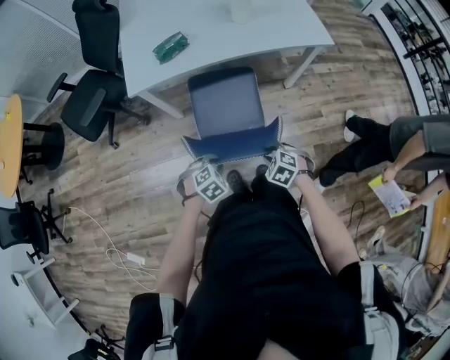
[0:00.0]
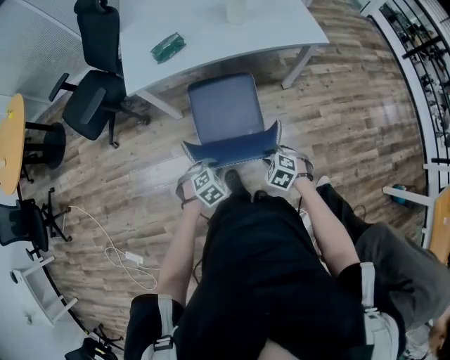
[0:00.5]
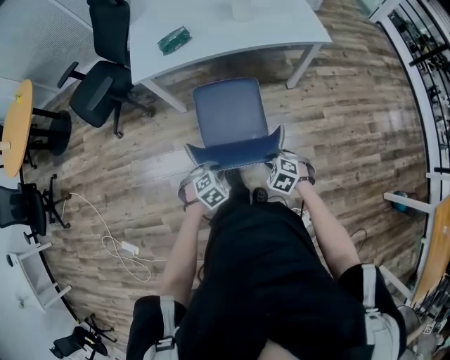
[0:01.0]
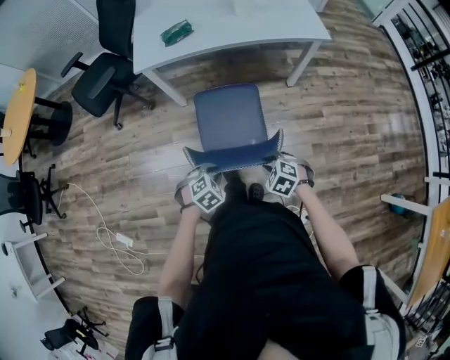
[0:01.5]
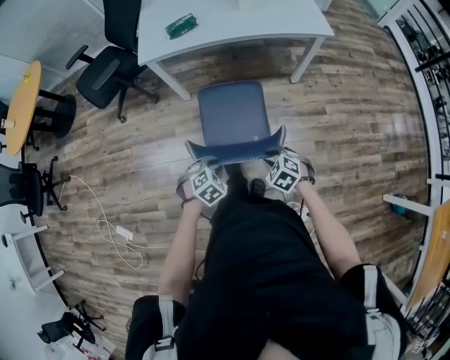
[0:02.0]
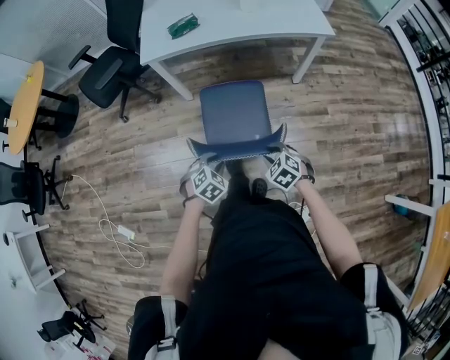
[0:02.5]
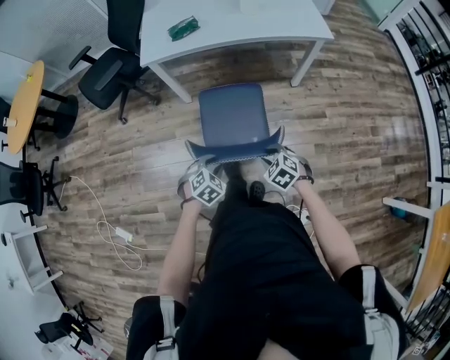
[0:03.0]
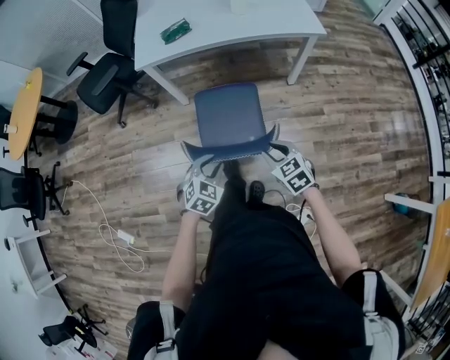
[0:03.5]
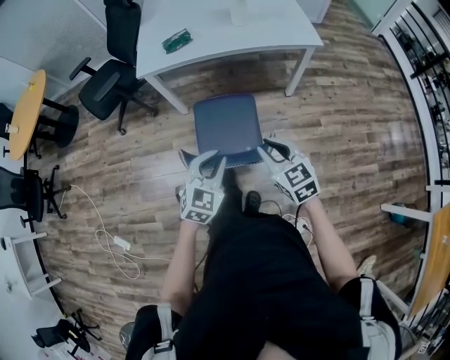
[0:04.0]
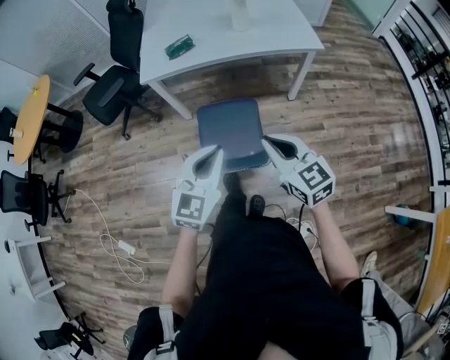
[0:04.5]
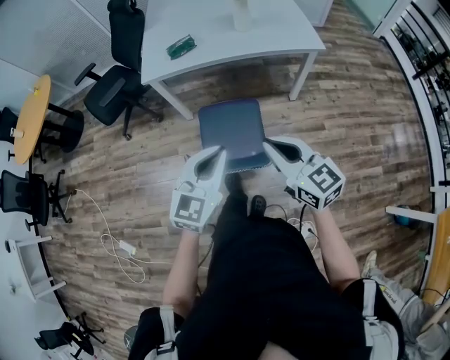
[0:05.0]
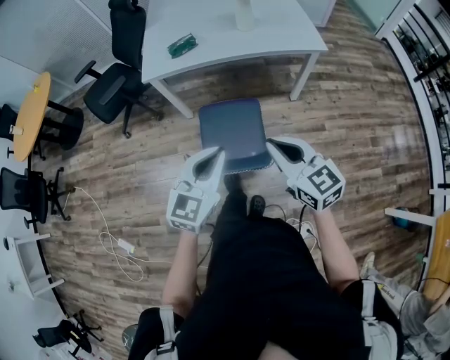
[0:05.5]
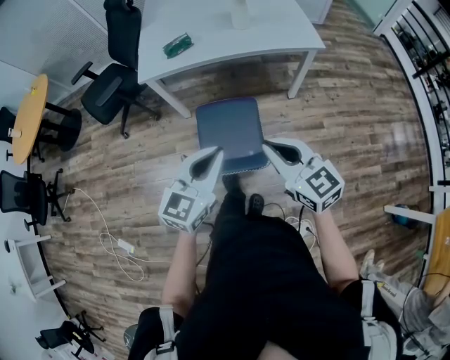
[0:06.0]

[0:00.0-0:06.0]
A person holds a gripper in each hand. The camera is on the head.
0:00.0 to 0:02.0: Both grippers move backward, some 15 cm.
0:02.0 to 0:04.0: The grippers both shift upward by approximately 20 cm. The left gripper tips its fingers upward by roughly 40 degrees. Meanwhile the right gripper points its fingers roughly 40 degrees further upward.
0:04.0 to 0:06.0: Both grippers move upward, approximately 10 cm. The left gripper swivels approximately 30 degrees.

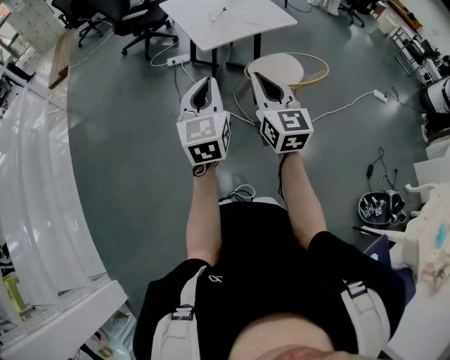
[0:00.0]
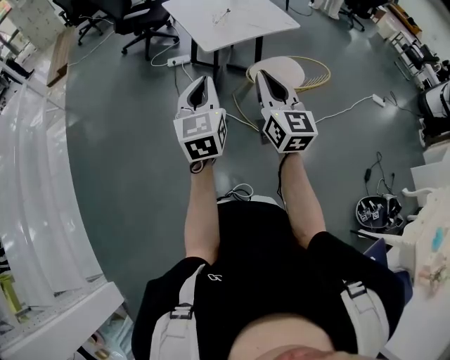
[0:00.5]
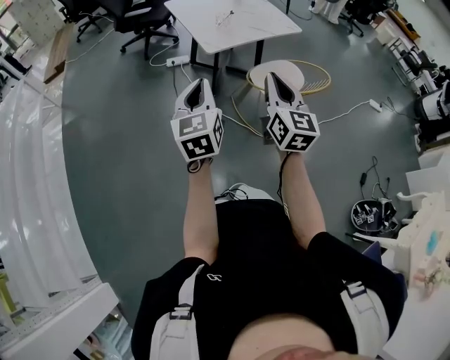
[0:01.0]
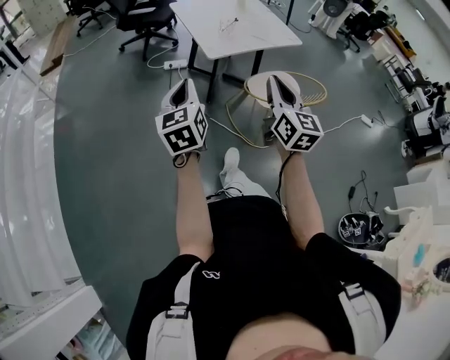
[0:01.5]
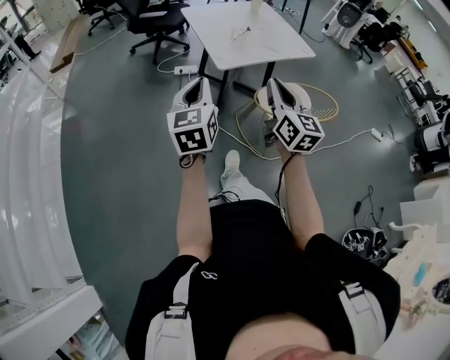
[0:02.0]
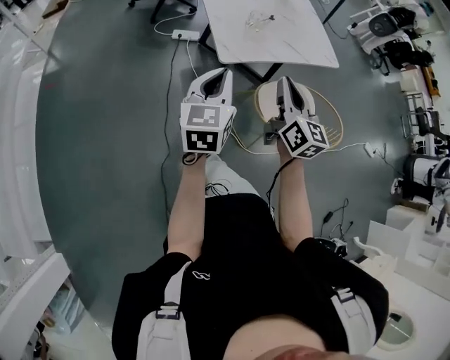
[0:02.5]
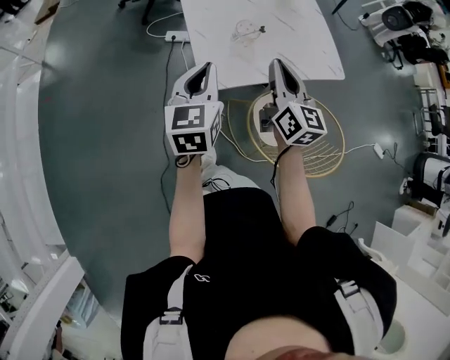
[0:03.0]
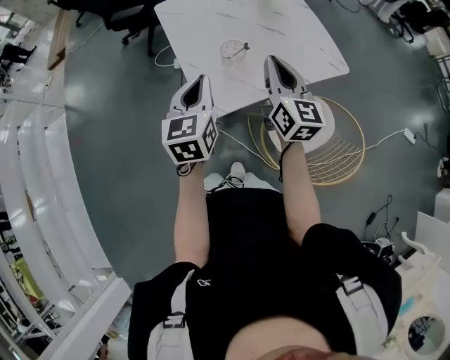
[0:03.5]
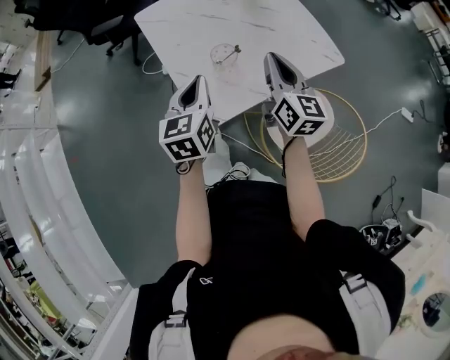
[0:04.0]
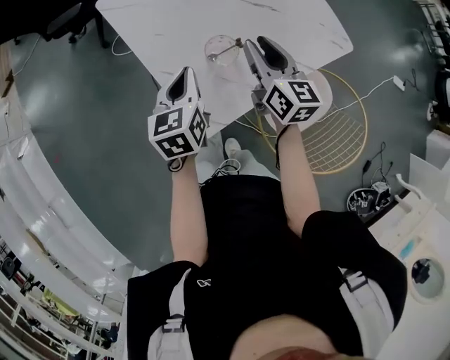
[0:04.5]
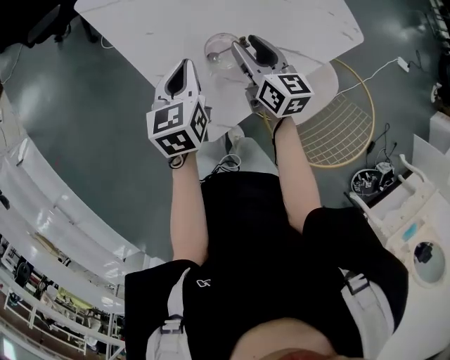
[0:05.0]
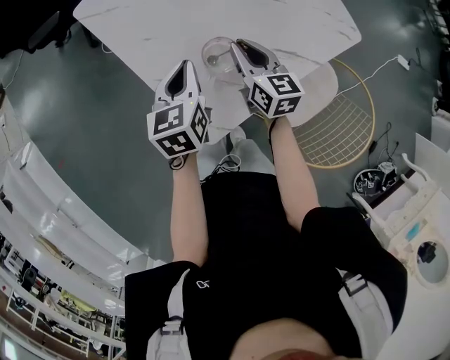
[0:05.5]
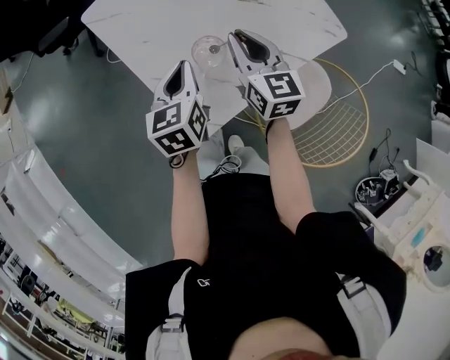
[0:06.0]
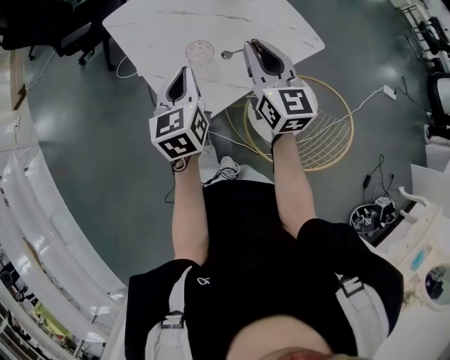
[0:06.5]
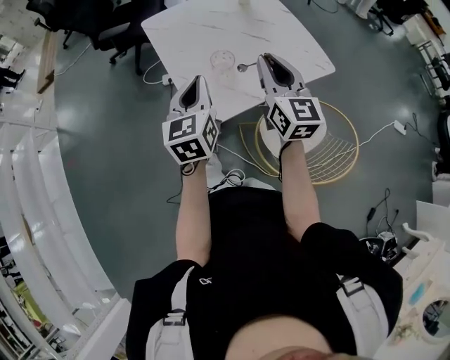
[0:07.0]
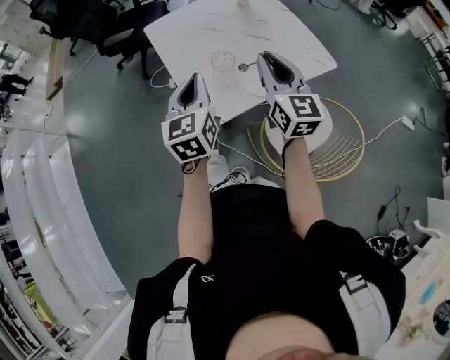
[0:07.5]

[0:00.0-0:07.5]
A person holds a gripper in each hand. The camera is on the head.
0:00.0 to 0:02.0: The right gripper travels forward by roughly 15 cm; the left gripper moves forward and to the left, approximately 15 cm.
0:02.0 to 0:04.0: The two grippers travel together, forward, approximately 50 cm.
0:04.0 to 0:05.5: Both grippers move downward and forward, some 20 cm. The right gripper changes its angle by some 20 degrees, and opens, then closes once more.
0:05.5 to 0:07.5: The two grippers go approximately 25 cm upward and backward. The left gripper turns by some 30 degrees; the right gripper swivels approximately 30 degrees.

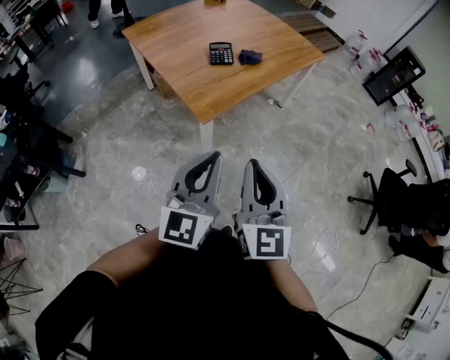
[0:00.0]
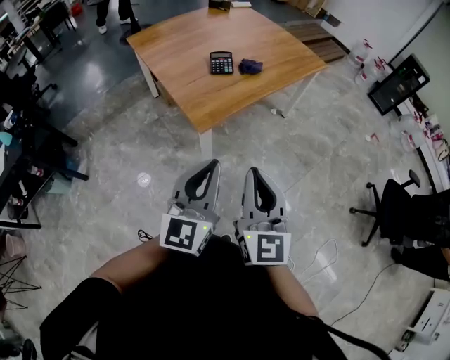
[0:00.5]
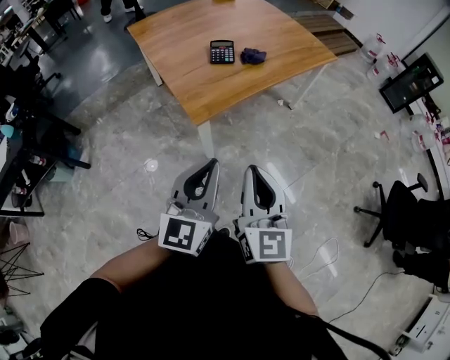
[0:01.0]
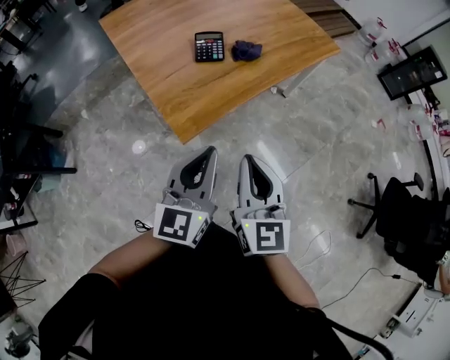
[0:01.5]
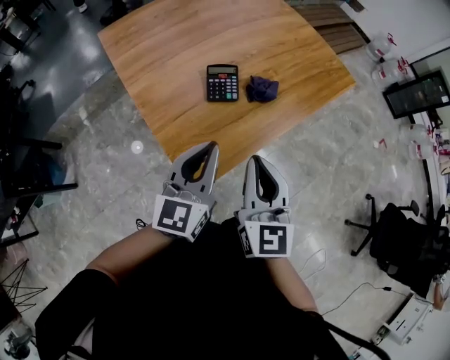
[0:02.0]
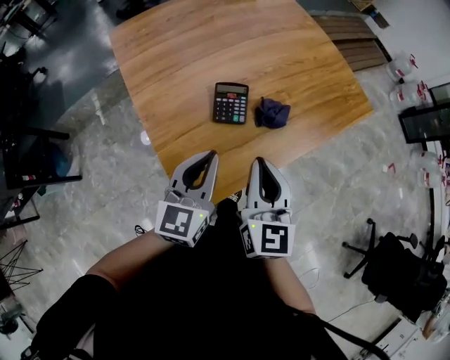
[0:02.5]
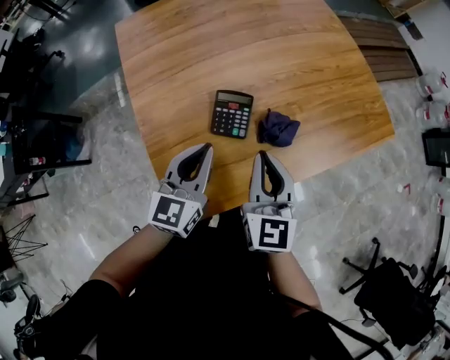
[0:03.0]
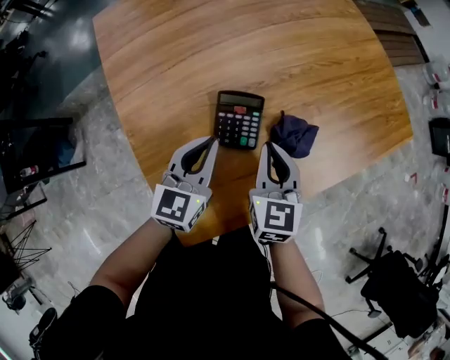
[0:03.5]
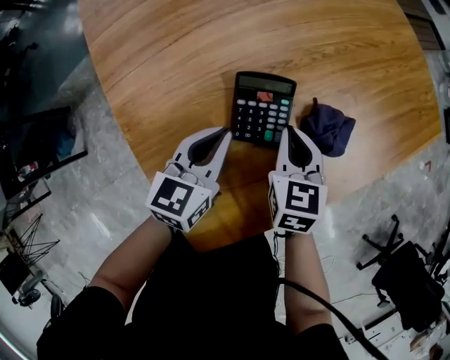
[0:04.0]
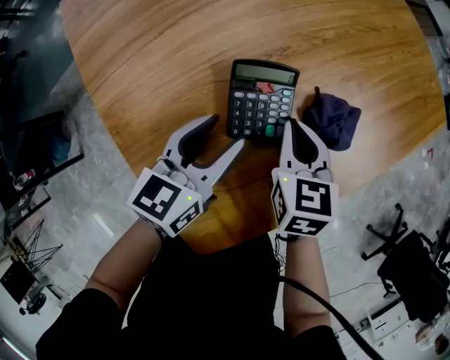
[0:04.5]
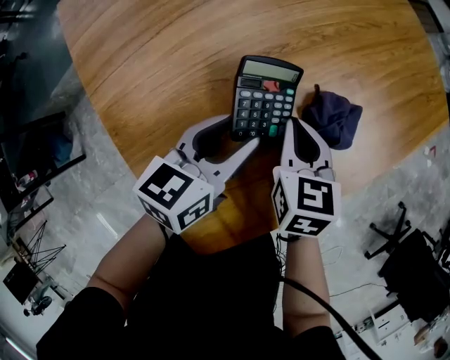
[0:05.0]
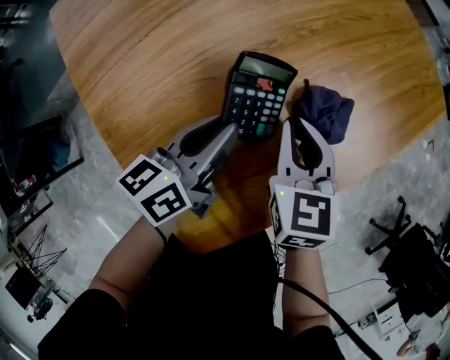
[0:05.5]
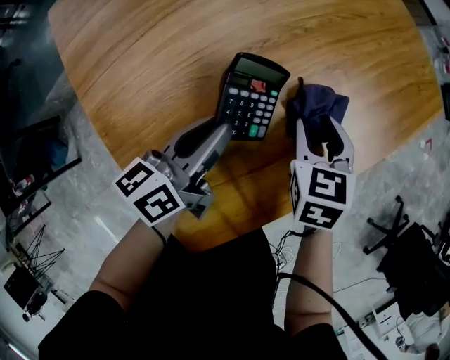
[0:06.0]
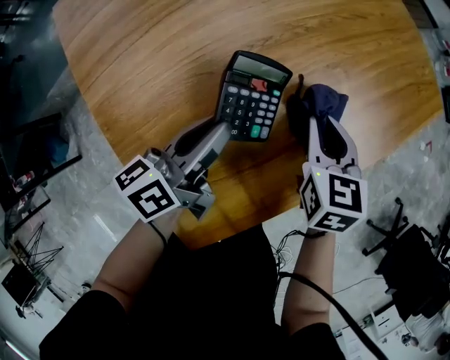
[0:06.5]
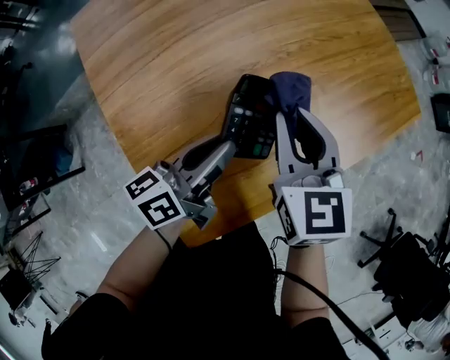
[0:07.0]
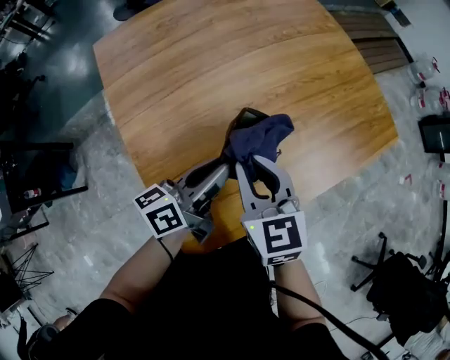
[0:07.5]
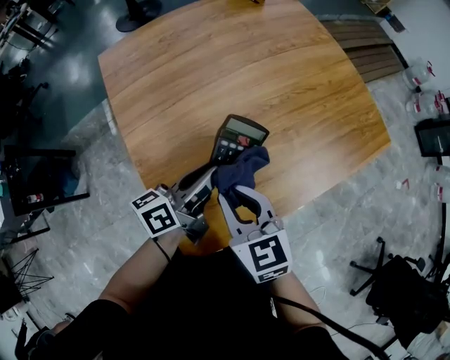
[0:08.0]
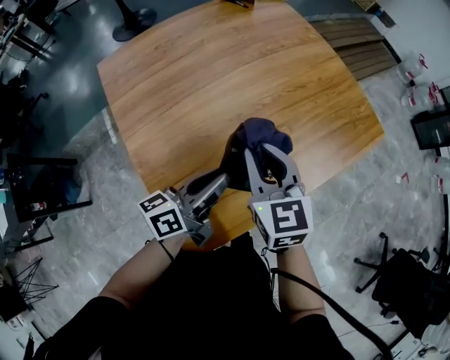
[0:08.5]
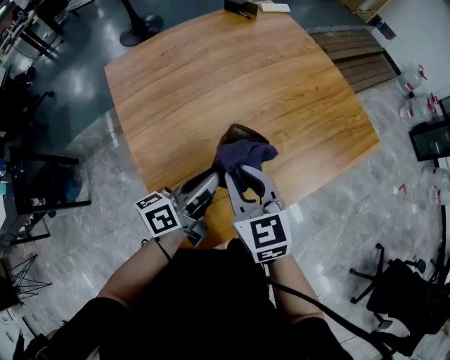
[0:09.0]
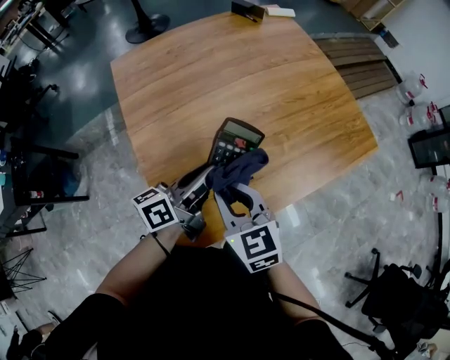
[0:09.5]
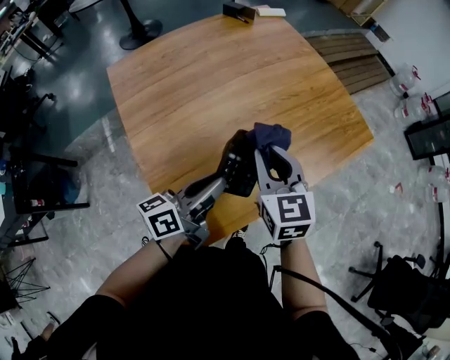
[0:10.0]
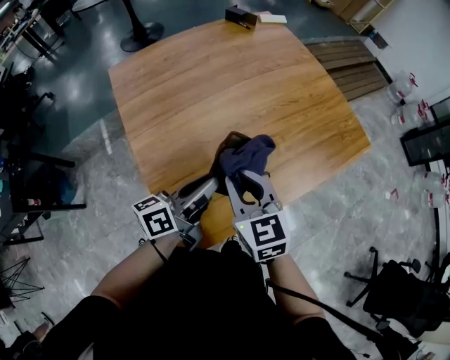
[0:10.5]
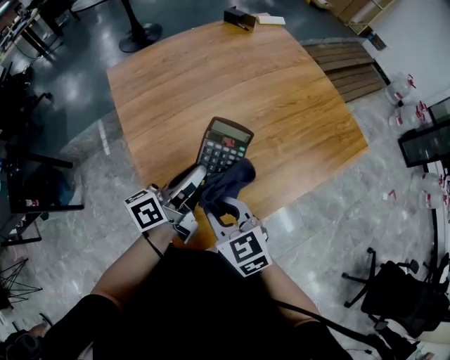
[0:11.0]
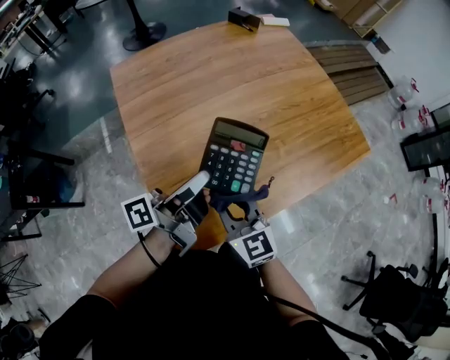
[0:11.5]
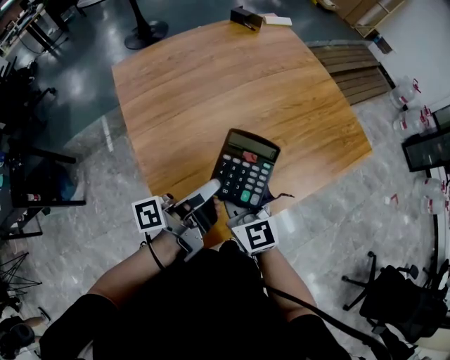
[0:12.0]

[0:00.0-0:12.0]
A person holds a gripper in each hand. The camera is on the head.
0:00.0 to 0:02.0: Both grippers are carried forward, about 40 cm.
0:02.0 to 0:04.0: The right gripper moves forward and downward, about 50 cm, and points its fingers roughly 30 degrees further downward. The left gripper goes about 40 cm downward and forward, and changes its angle by some 20 degrees.
0:04.0 to 0:06.0: The left gripper swivels approximately 30 degrees, and opens, then closes once more. Meanwhile the right gripper heads to the right, covering some 5 cm, and opens its fingers.
0:06.0 to 0:08.0: The left gripper travels upward by approximately 15 cm. The right gripper moves upward, to the left and backward, roughly 30 cm, changes its angle by about 40 degrees, and closes up.
0:08.0 to 0:10.0: The left gripper heads backward and upward, covering some 10 cm; the right gripper moves forward and backward over about 10 cm, changing direction 2 times.
0:10.0 to 0:12.0: The left gripper changes its angle by about 40 degrees. Meanwhile the right gripper is displaced to the left and backward by approximately 10 cm, and rotates roughly 20 degrees.

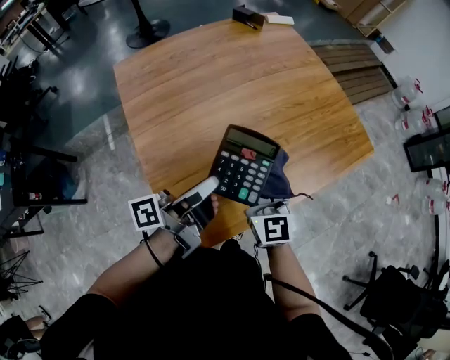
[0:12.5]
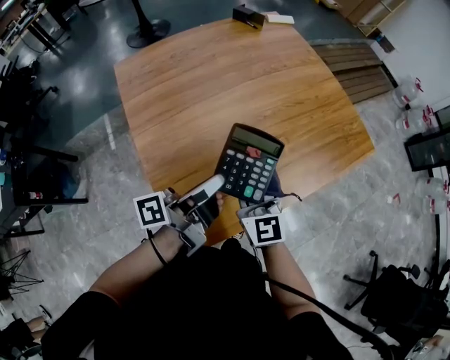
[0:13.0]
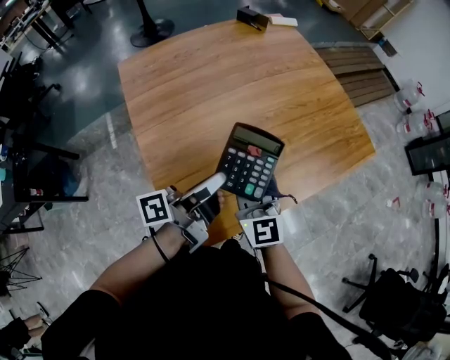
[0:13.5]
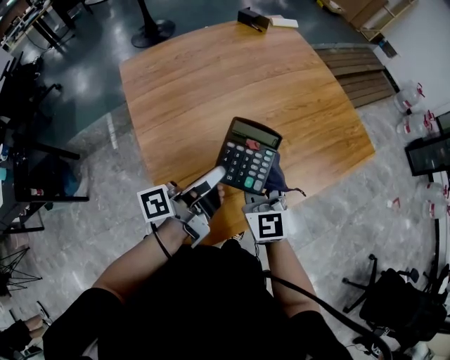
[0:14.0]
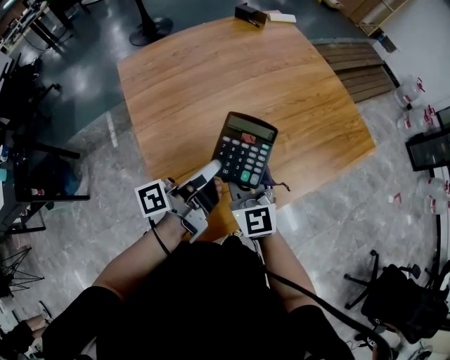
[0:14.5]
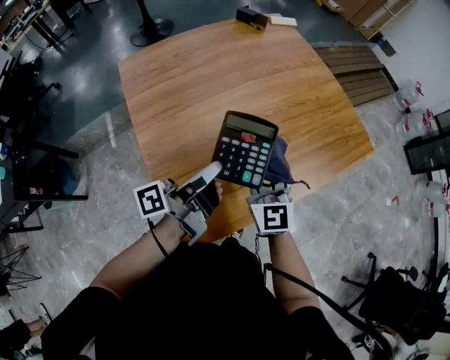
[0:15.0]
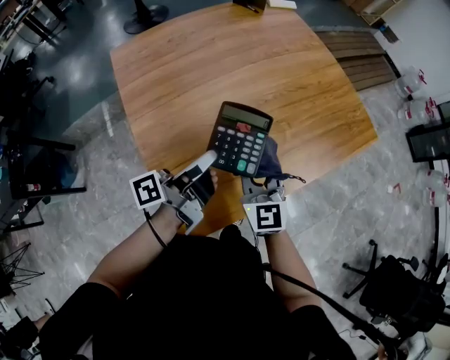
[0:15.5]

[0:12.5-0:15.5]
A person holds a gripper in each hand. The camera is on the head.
0:14.0 to 0:15.5: The grippers make only small movements.
